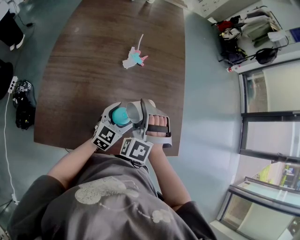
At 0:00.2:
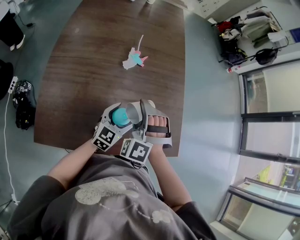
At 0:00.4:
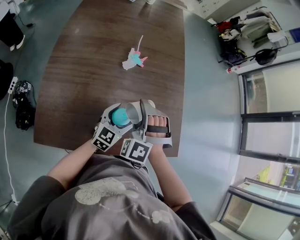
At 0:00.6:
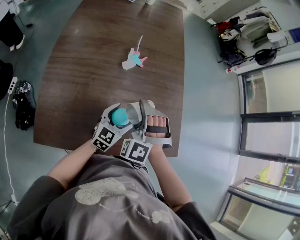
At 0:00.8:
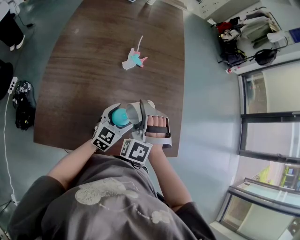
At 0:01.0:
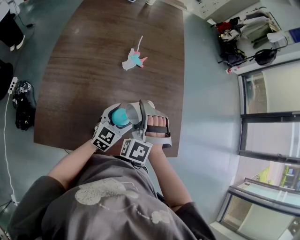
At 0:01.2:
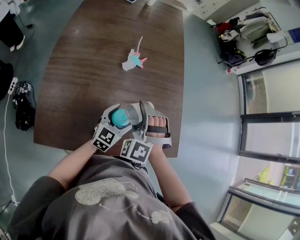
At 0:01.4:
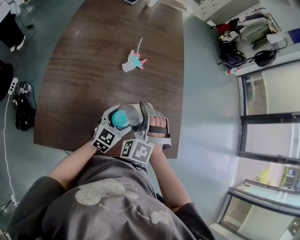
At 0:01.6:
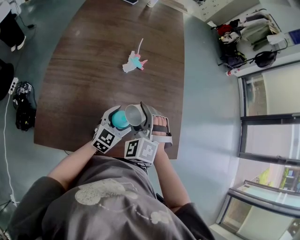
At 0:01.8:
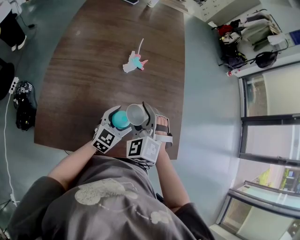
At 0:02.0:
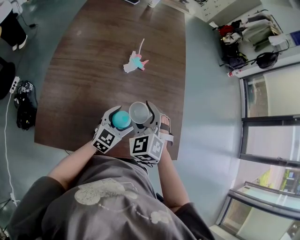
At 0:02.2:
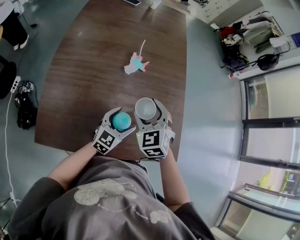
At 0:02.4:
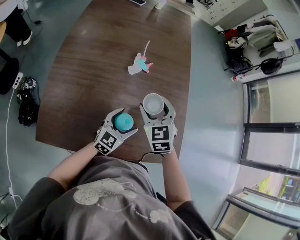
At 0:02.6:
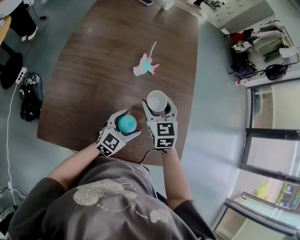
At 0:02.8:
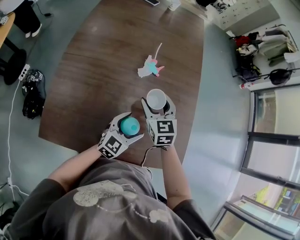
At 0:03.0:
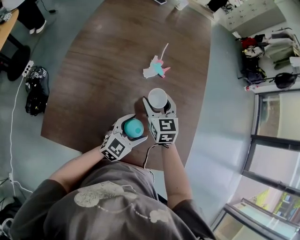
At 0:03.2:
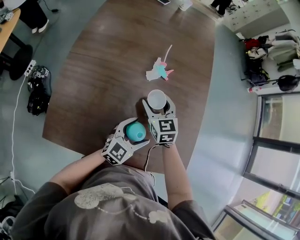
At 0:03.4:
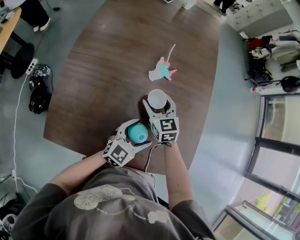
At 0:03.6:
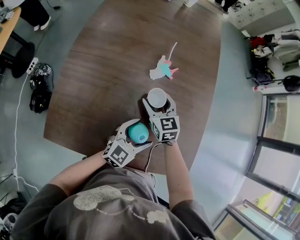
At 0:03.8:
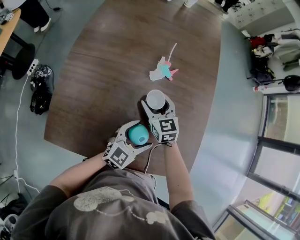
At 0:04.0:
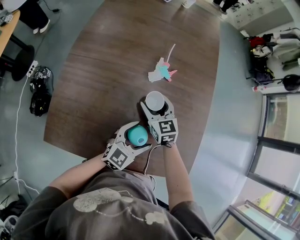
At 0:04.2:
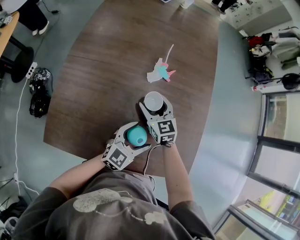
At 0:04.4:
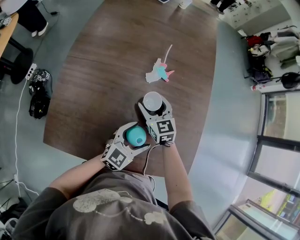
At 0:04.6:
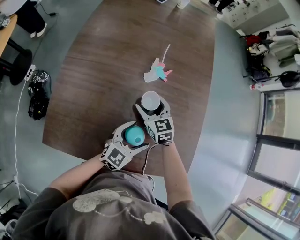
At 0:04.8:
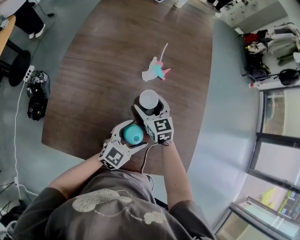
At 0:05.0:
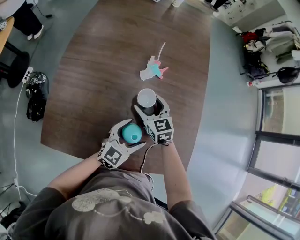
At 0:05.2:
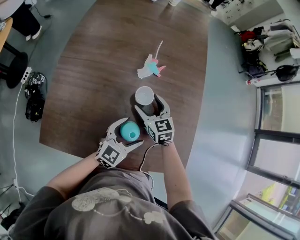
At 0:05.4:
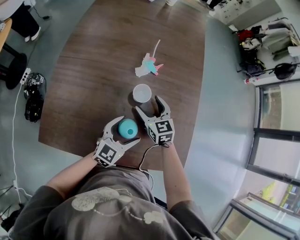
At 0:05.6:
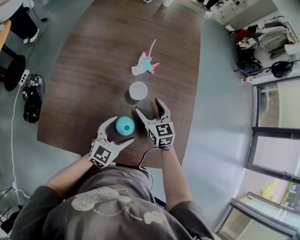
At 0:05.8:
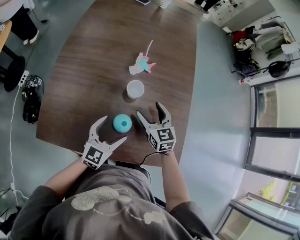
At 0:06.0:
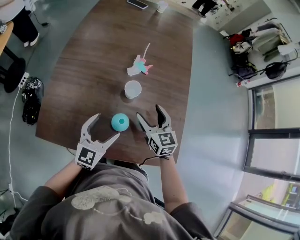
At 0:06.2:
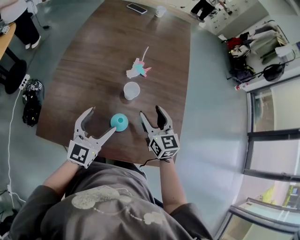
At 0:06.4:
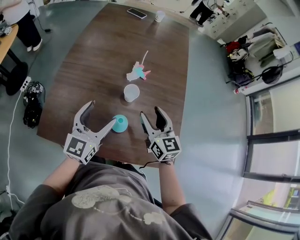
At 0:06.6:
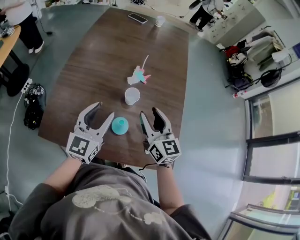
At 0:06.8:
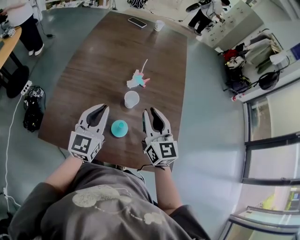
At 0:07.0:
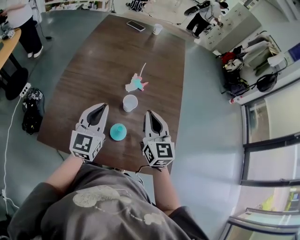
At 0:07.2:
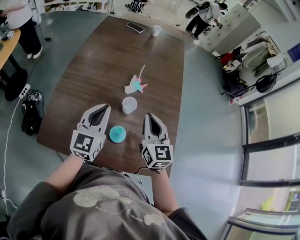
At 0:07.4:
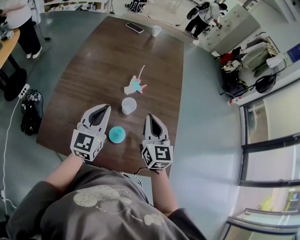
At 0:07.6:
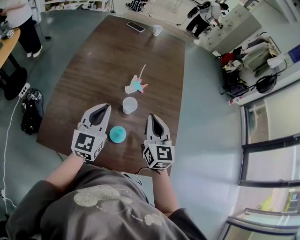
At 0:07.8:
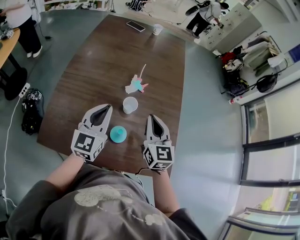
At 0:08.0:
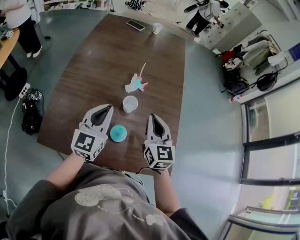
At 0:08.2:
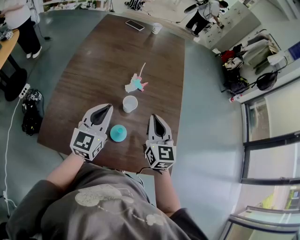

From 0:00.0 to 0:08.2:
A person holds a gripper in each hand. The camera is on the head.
From 0:00.0 to 0:01.6: The grippers stay close to where they were, moving slightly.
From 0:01.6 to 0:03.2: The right gripper moves forward and downward, approximately 15 cm, and rotates around the line of its fingers by approximately 50 degrees, clockwise from behind.
From 0:03.2 to 0:05.0: There are only small adjustments of the grippers.
From 0:05.0 to 0:06.6: The left gripper shifts roughly 20 cm upward and to the left, rotates roughly 30 degrees, and closes. Meanwhile the right gripper heads upward, backward and to the right, covering some 20 cm, swivels roughly 30 degrees, and closes up.
From 0:06.6 to 0:08.2: The left gripper closes; the right gripper closes.

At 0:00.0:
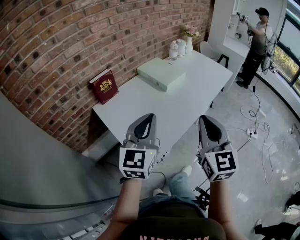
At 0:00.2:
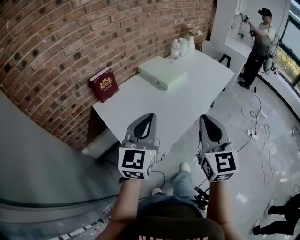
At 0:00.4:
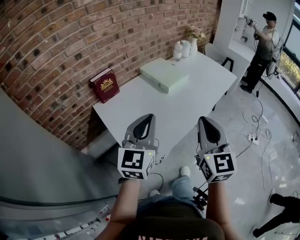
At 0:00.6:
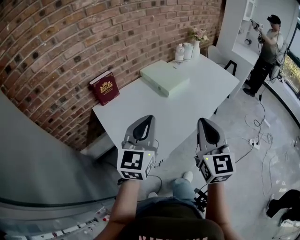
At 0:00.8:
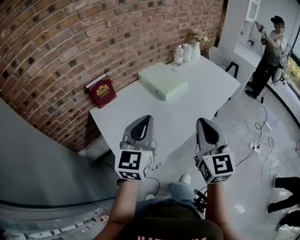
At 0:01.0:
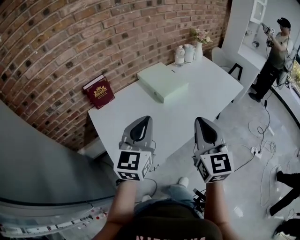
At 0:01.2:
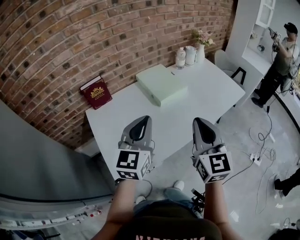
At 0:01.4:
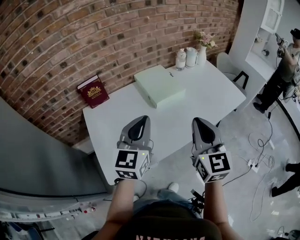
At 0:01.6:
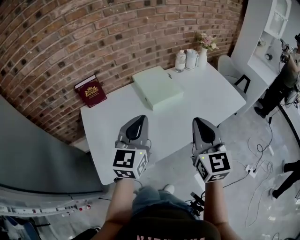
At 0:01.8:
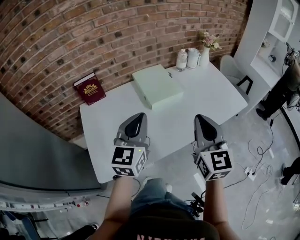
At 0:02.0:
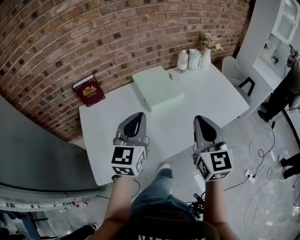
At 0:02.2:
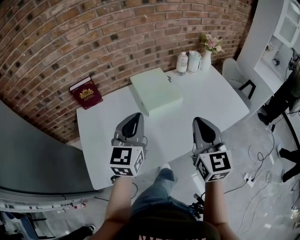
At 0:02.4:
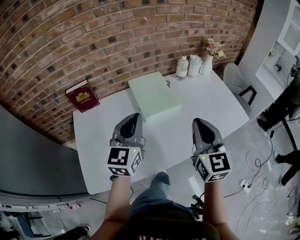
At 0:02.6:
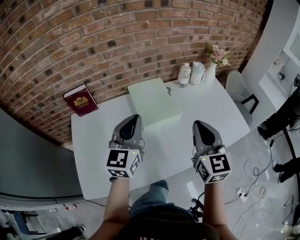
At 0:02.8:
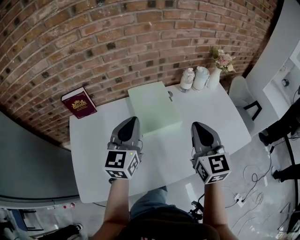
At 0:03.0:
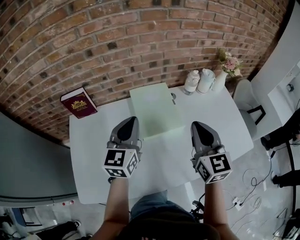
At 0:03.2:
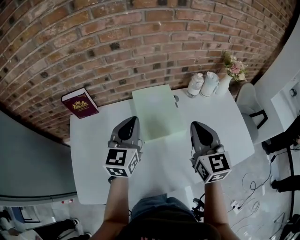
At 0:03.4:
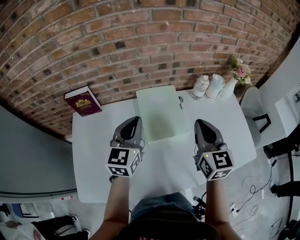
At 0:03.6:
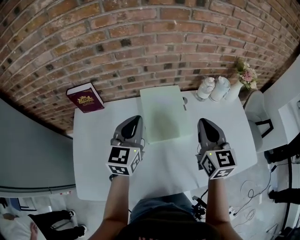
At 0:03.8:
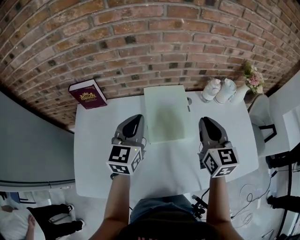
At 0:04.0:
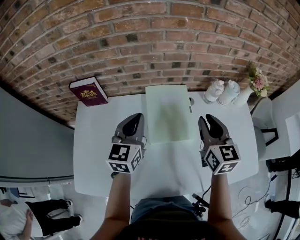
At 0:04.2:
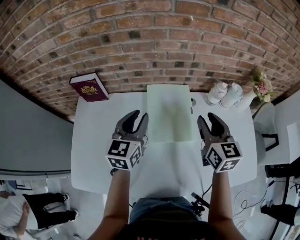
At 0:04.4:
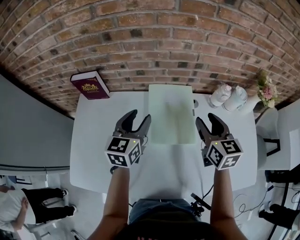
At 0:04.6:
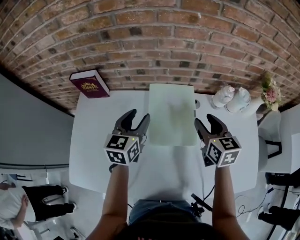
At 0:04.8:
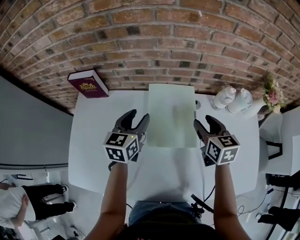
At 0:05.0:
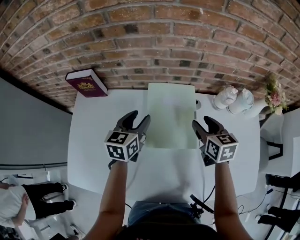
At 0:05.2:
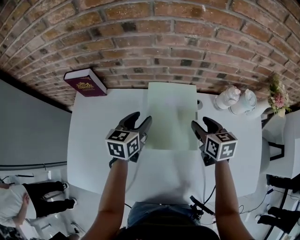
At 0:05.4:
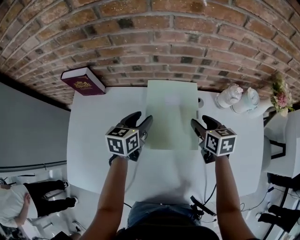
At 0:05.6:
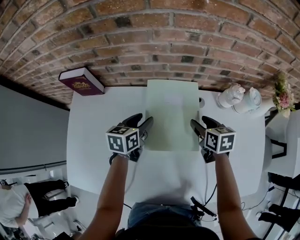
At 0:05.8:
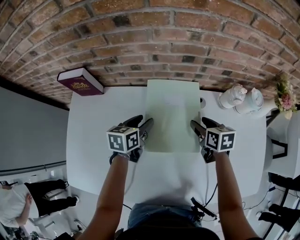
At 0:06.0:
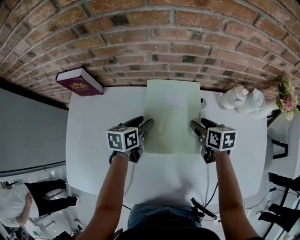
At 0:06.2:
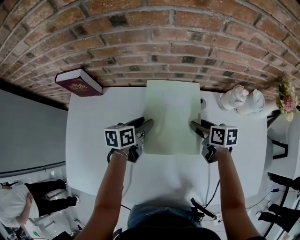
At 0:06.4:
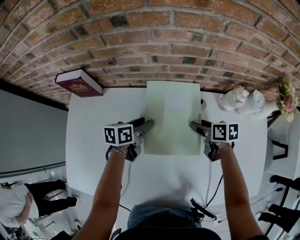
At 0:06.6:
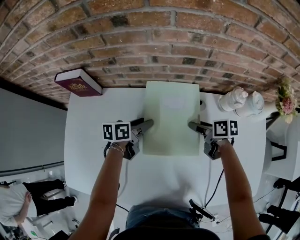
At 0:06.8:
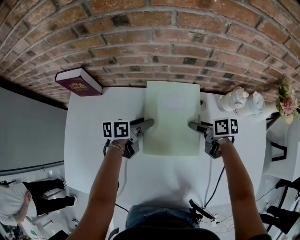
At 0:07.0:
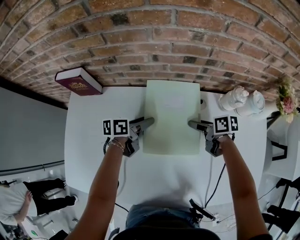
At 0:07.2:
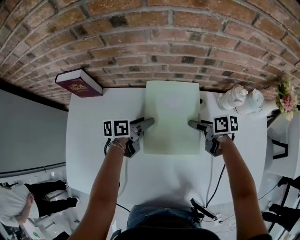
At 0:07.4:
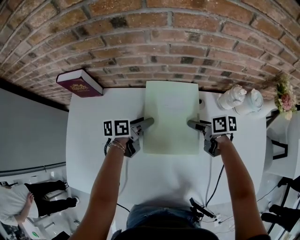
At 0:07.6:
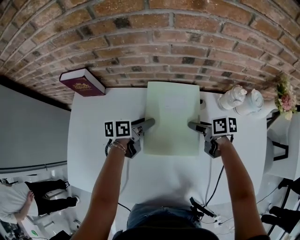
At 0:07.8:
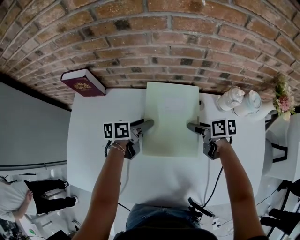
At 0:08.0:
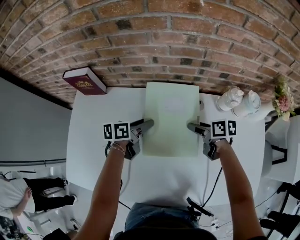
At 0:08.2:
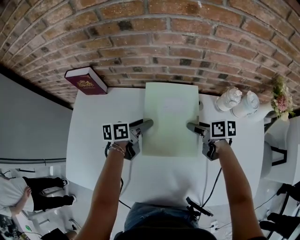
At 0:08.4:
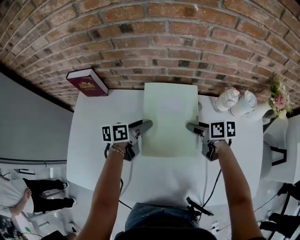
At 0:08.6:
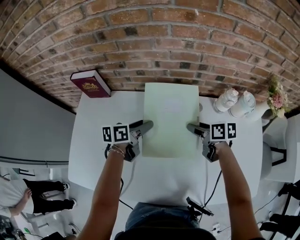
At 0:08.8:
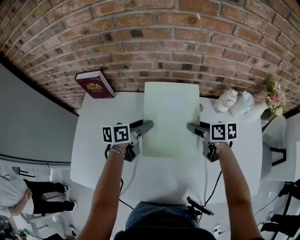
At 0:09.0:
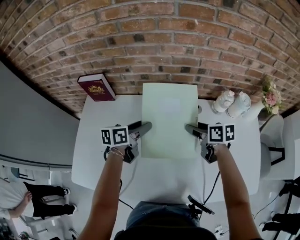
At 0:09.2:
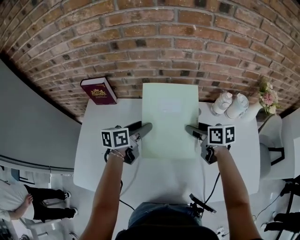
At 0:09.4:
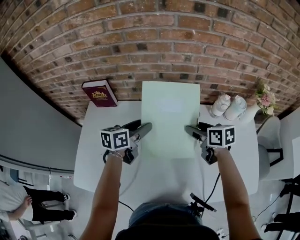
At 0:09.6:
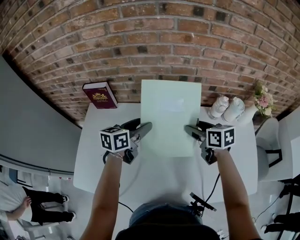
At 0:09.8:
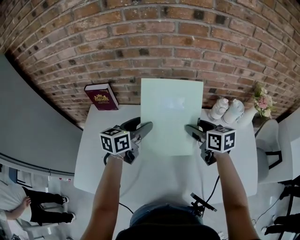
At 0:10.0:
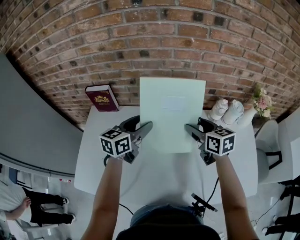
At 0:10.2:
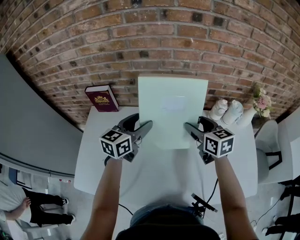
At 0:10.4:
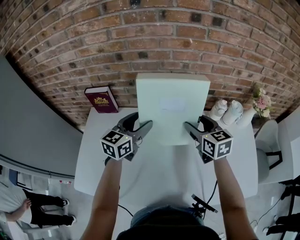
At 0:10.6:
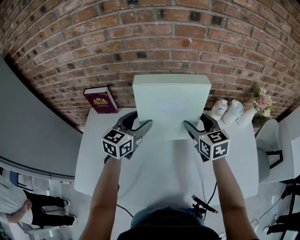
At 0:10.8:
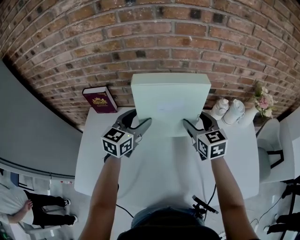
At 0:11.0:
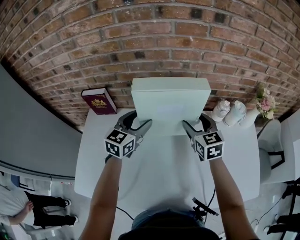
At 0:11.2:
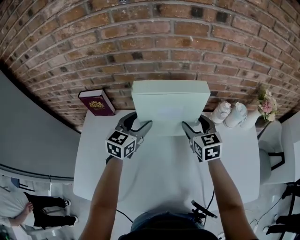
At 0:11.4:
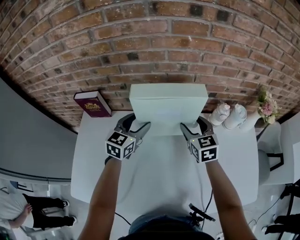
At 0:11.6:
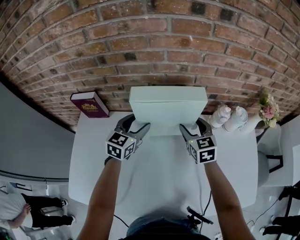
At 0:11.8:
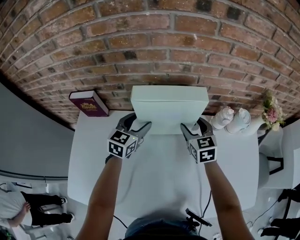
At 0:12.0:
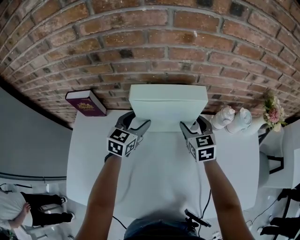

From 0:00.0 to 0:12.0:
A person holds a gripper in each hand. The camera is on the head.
From 0:00.0 to 0:01.6: Both grippers move forward and to the right, about 25 cm.
From 0:01.6 to 0:03.0: The two grippers go roughly 25 cm forward.
From 0:03.0 to 0:04.4: The left gripper goes roughly 10 cm forward and downward, and opens up. Meanwhile the right gripper moves forward and downward, approximately 20 cm, turns by approximately 20 degrees, and opens its fingers.
From 0:04.4 to 0:06.0: Both grippers move downward, approximately 20 cm. The left gripper changes its angle by roughly 30 degrees; the right gripper changes its angle by some 30 degrees.
From 0:06.0 to 0:07.6: The right gripper turns by some 20 degrees. The left gripper rotates approximately 20 degrees.
From 0:07.6 to 0:09.0: Both grippers move upward, approximately 10 cm.
From 0:09.0 to 0:10.4: The grippers both shift upward by some 10 cm. The right gripper swivels some 40 degrees; the left gripper turns by about 40 degrees.
From 0:10.4 to 0:12.0: Both grippers move forward and downward, some 15 cm.

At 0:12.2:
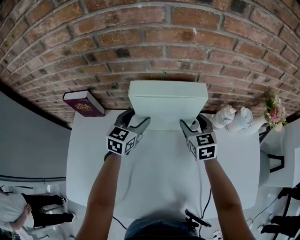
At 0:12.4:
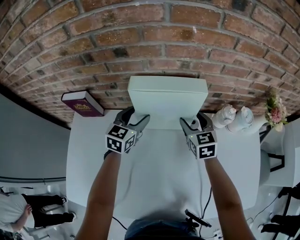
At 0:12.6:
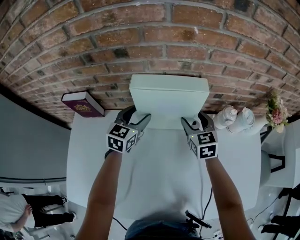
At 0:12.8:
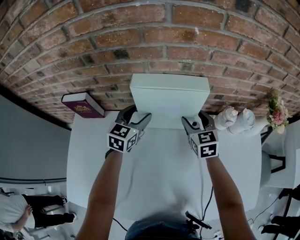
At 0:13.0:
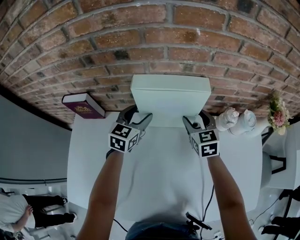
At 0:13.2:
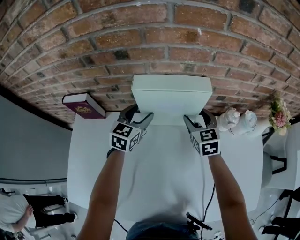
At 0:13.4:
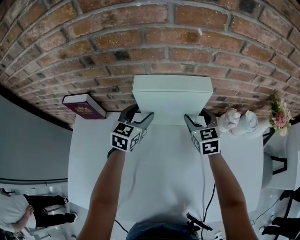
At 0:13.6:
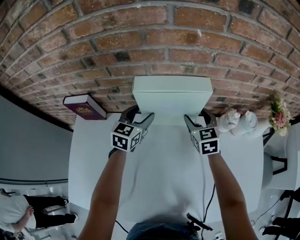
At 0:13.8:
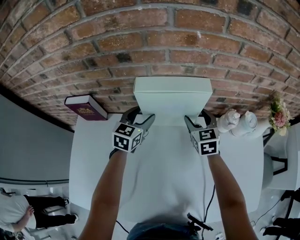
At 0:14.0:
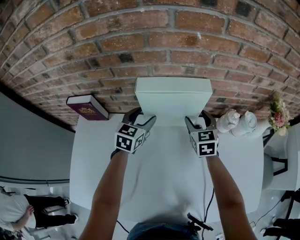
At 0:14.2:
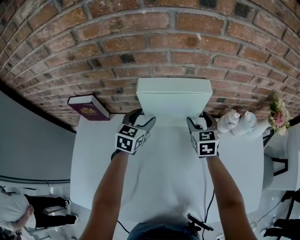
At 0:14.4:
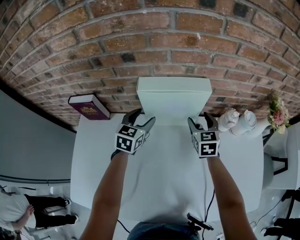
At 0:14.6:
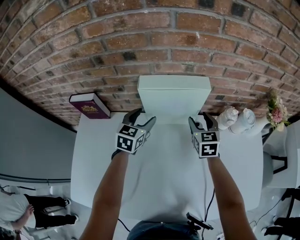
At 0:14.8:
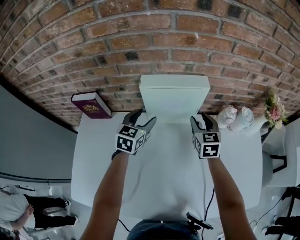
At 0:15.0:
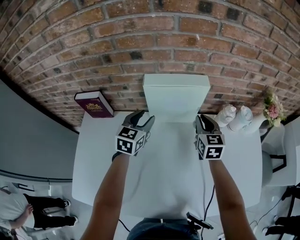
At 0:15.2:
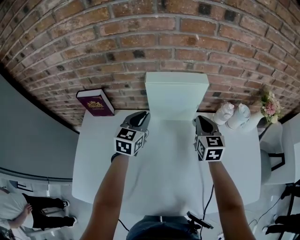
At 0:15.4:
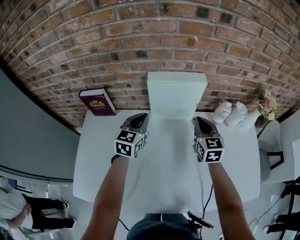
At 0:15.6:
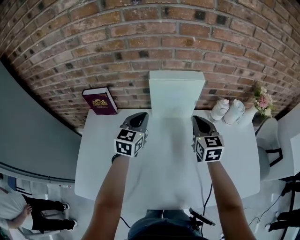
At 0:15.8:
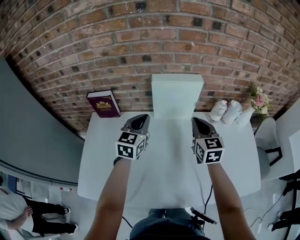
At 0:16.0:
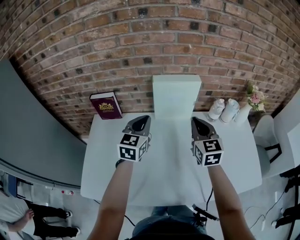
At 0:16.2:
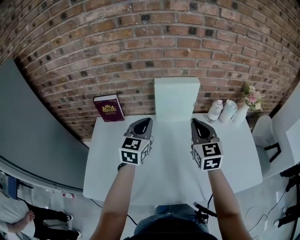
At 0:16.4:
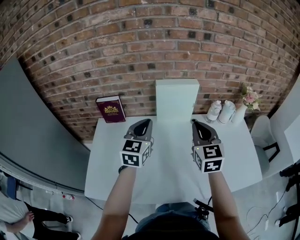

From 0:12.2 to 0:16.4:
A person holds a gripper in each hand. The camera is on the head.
From 0:12.2 to 0:13.6: There are only small adjustments of the grippers.
From 0:13.6 to 0:15.0: The grippers both shift backward by roughly 5 cm. The right gripper closes up.
From 0:15.0 to 0:16.4: The two grippers go approximately 25 cm backward and upward. The left gripper closes up.
